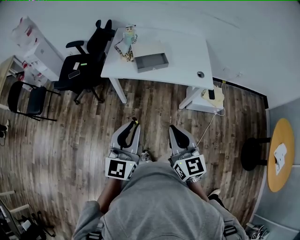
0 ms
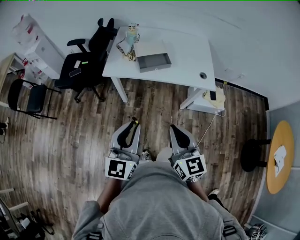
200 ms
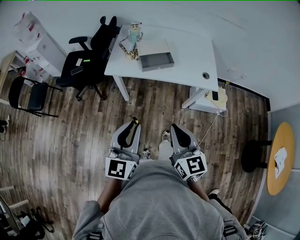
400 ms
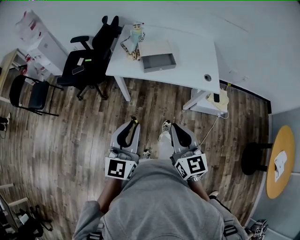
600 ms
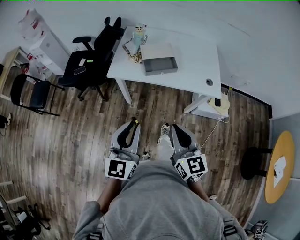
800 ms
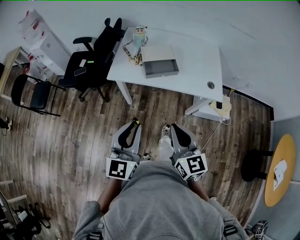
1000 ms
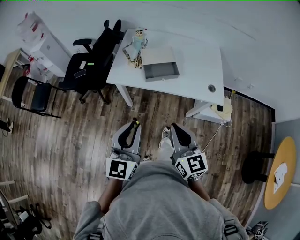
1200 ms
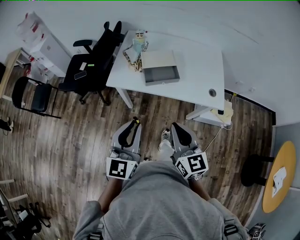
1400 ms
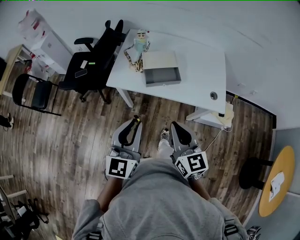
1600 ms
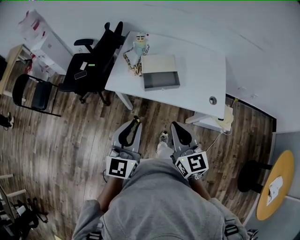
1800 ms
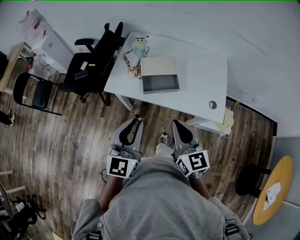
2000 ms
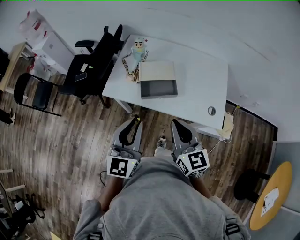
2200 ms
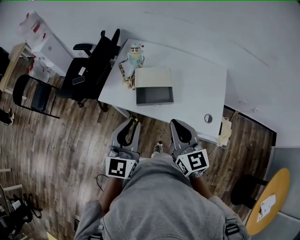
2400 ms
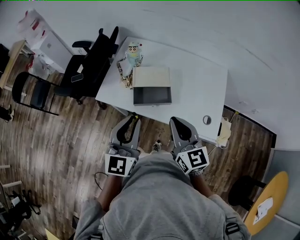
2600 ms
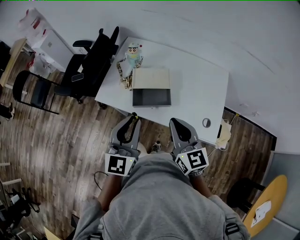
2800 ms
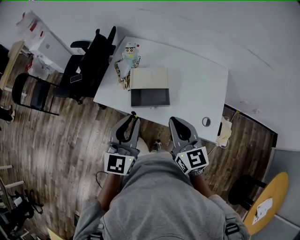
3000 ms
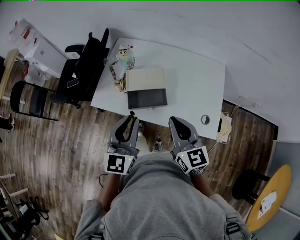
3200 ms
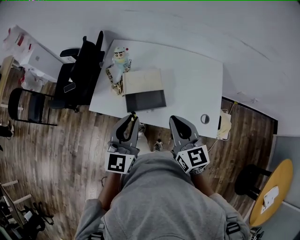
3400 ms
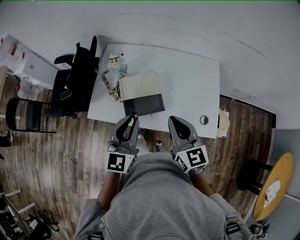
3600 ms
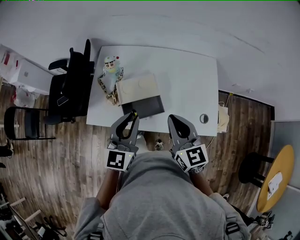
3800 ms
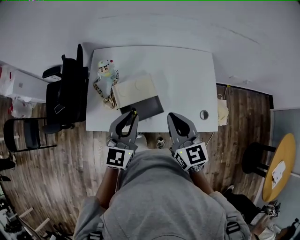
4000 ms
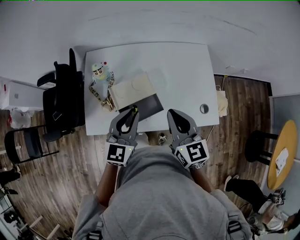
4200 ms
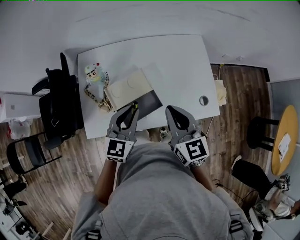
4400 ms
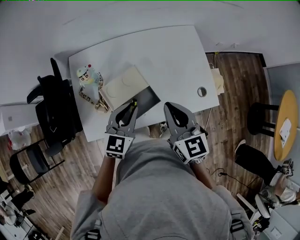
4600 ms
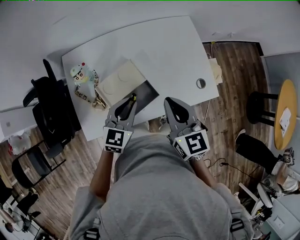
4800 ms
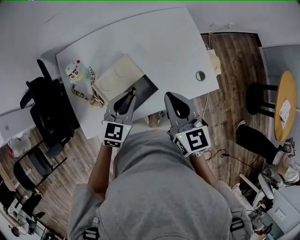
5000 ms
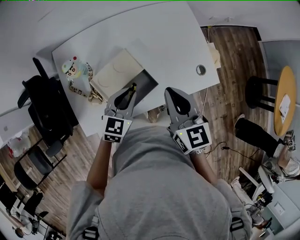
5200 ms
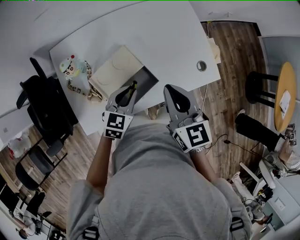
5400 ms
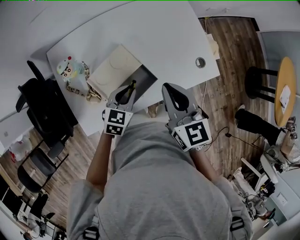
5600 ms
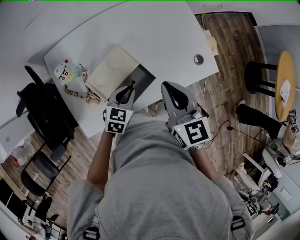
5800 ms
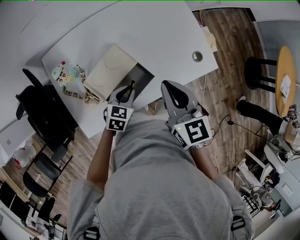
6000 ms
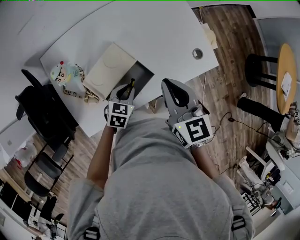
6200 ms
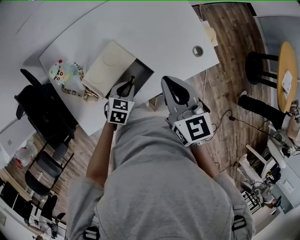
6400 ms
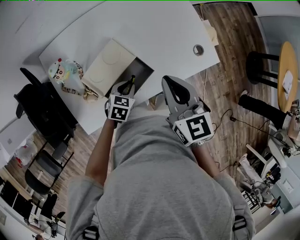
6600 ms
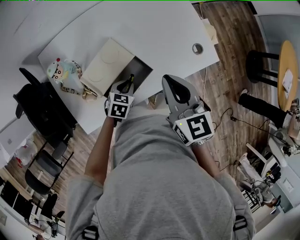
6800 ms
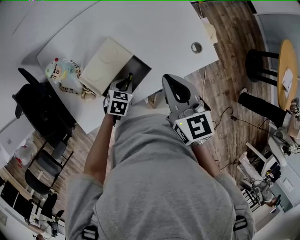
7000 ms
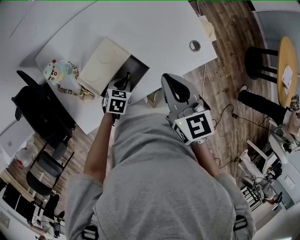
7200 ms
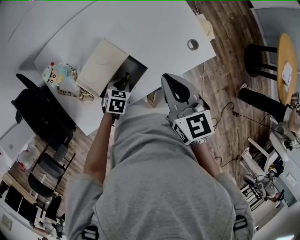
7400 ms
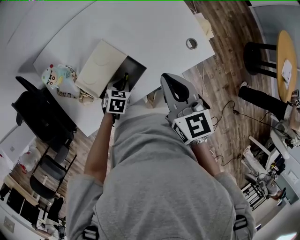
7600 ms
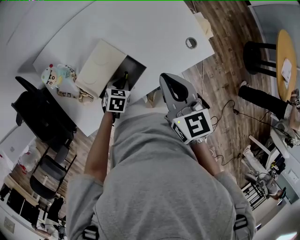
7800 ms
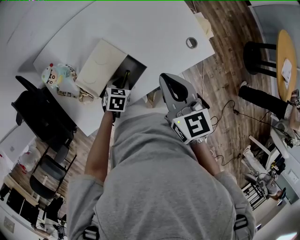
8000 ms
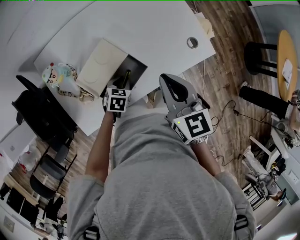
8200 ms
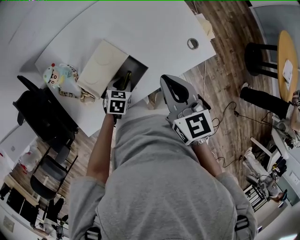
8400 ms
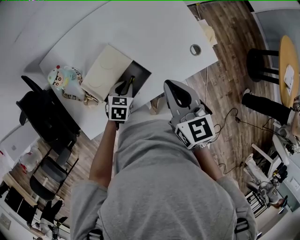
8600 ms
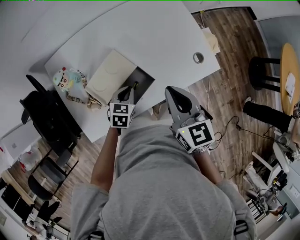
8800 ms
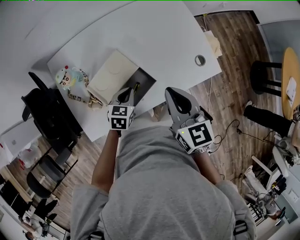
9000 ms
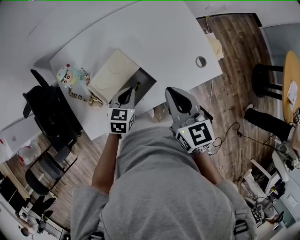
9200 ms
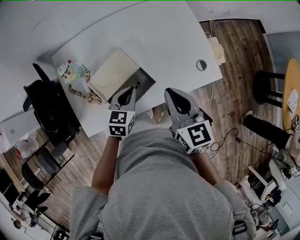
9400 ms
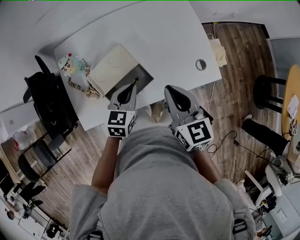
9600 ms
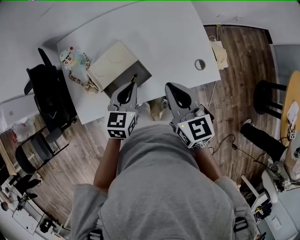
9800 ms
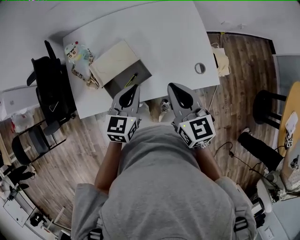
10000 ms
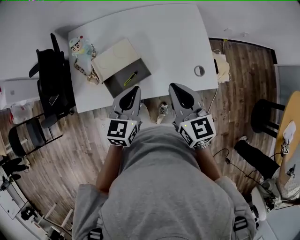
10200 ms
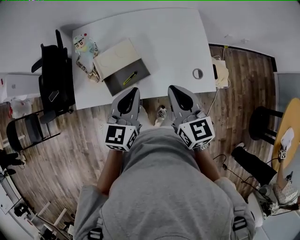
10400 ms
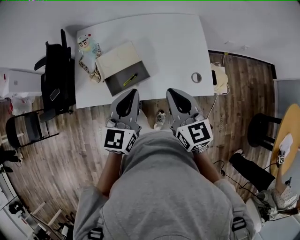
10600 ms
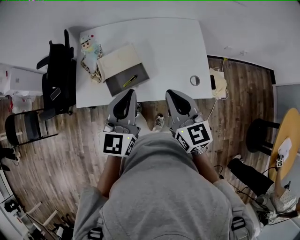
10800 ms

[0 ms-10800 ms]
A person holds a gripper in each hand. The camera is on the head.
0 ms to 1600 ms: Both grippers move forward, some 20 cm.
1600 ms to 3000 ms: Both grippers move forward and to the right, some 20 cm.
3000 ms to 4600 ms: The right gripper shifts by about 15 cm, and rotates roughly 30 degrees. The left gripper ends up about 25 cm from where it was, and swivels about 40 degrees.
4600 ms to 6200 ms: The left gripper travels downward by about 20 cm, and swivels approximately 30 degrees.
6200 ms to 7800 ms: The left gripper heads downward, covering approximately 5 cm.
7800 ms to 9200 ms: The left gripper heads upward, covering about 10 cm, and turns by about 20 degrees.
9200 ms to 10800 ms: The left gripper goes roughly 25 cm upward, and points its fingers roughly 40 degrees further upward. Meanwhile the right gripper shifts by roughly 15 cm, and swivels some 20 degrees.

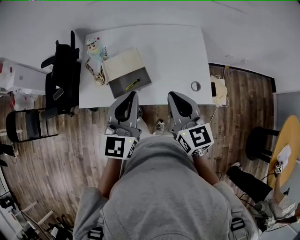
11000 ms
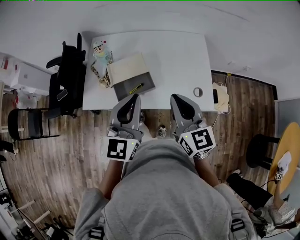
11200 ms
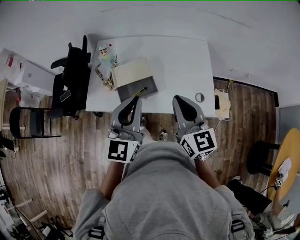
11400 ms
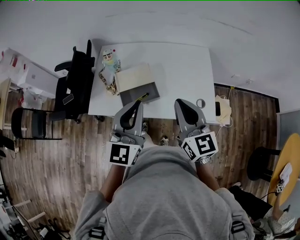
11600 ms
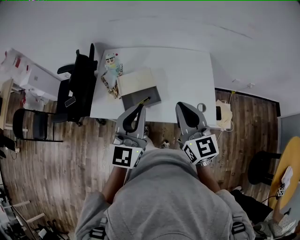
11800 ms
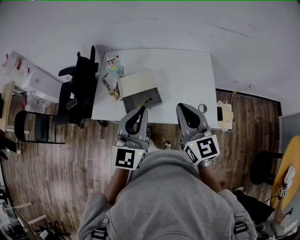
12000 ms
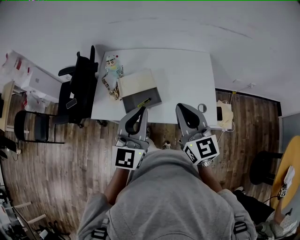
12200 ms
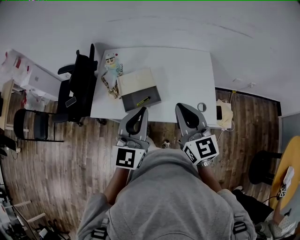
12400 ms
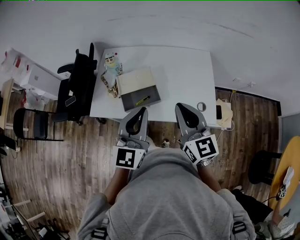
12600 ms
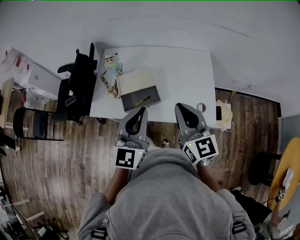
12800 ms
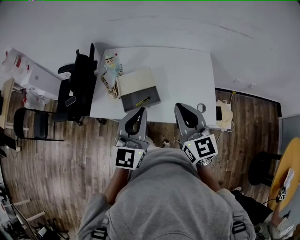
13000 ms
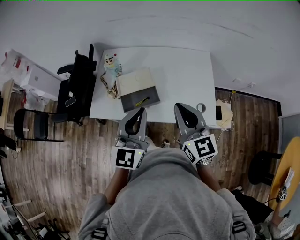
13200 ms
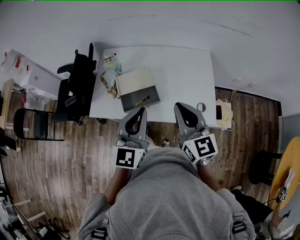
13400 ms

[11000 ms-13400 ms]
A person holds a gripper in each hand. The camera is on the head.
11000 ms to 12200 ms: The right gripper goes some 5 cm upward.
12200 ms to 13400 ms: The grippers make only small movements.

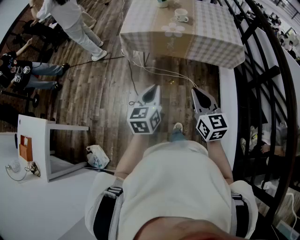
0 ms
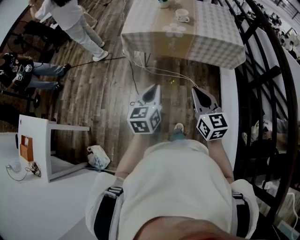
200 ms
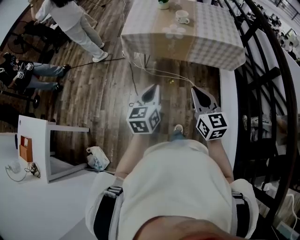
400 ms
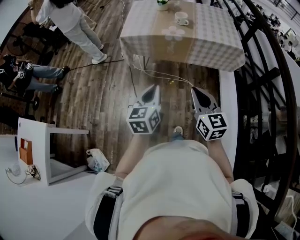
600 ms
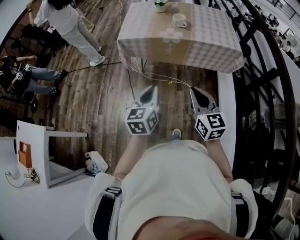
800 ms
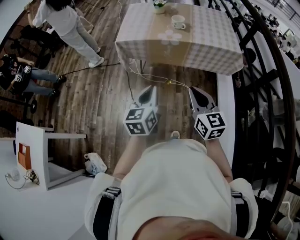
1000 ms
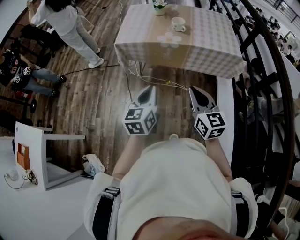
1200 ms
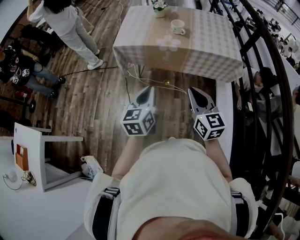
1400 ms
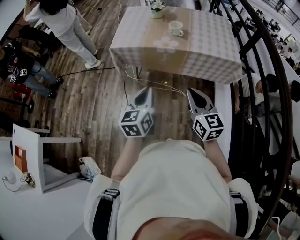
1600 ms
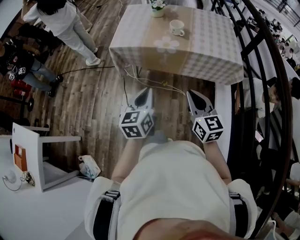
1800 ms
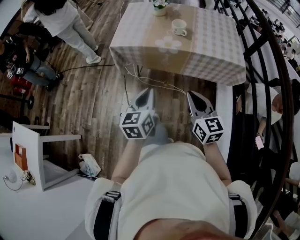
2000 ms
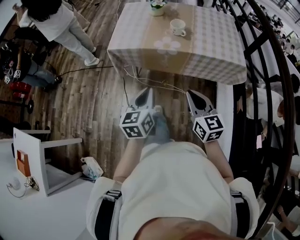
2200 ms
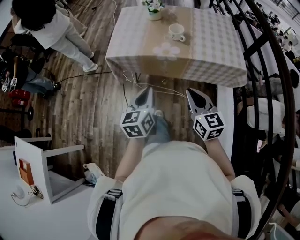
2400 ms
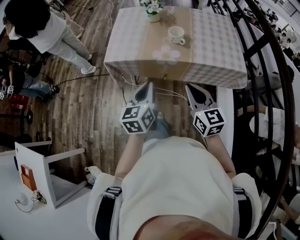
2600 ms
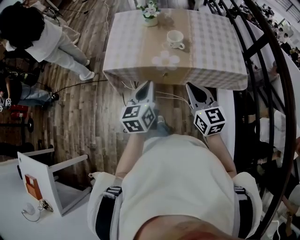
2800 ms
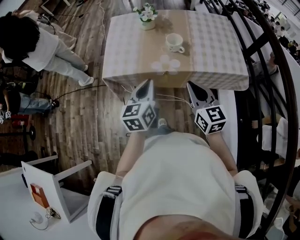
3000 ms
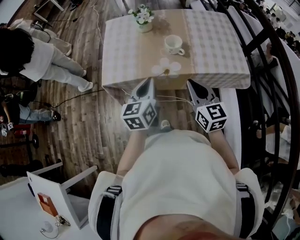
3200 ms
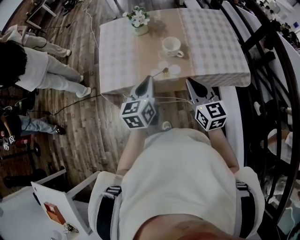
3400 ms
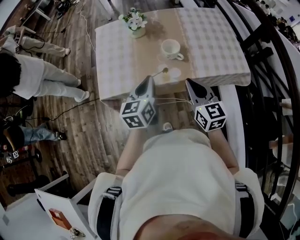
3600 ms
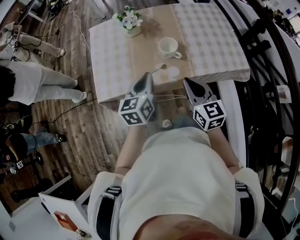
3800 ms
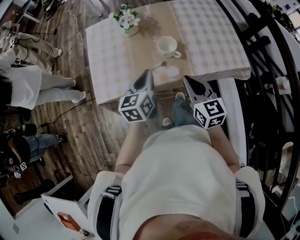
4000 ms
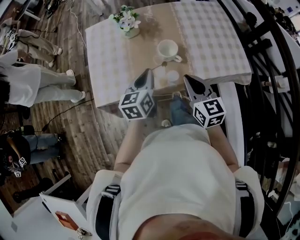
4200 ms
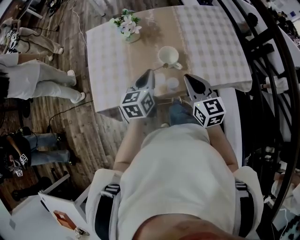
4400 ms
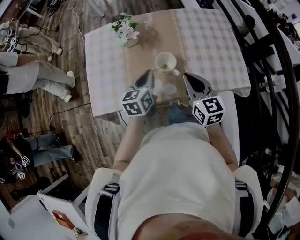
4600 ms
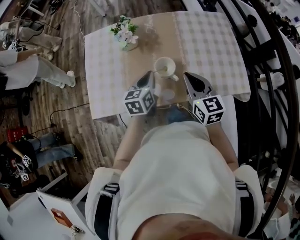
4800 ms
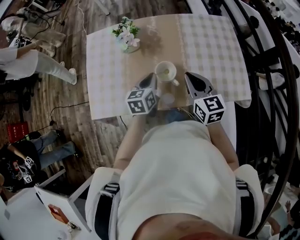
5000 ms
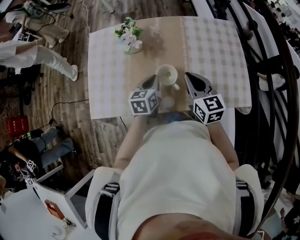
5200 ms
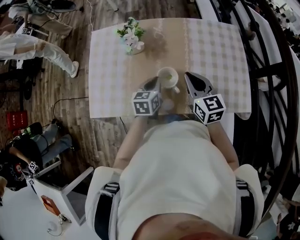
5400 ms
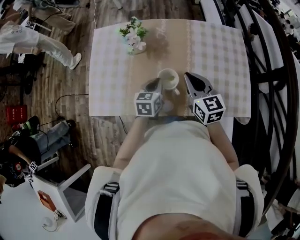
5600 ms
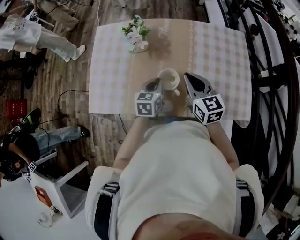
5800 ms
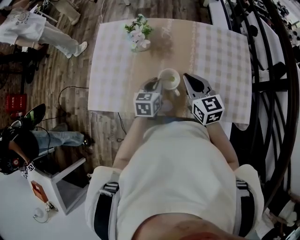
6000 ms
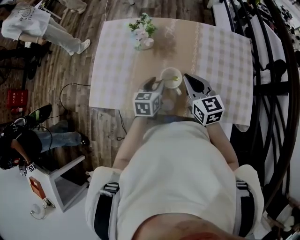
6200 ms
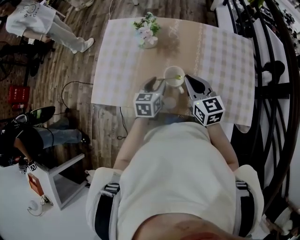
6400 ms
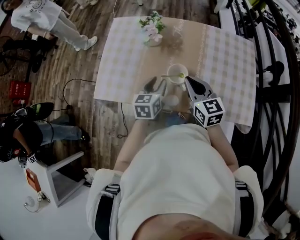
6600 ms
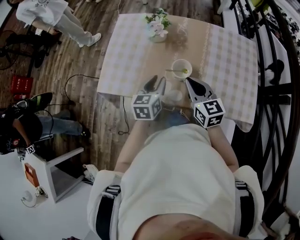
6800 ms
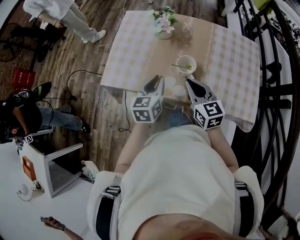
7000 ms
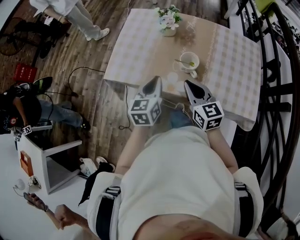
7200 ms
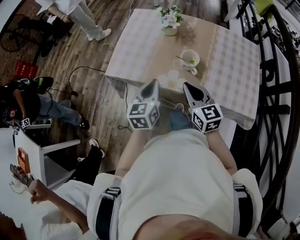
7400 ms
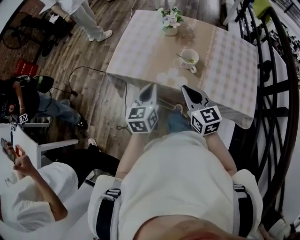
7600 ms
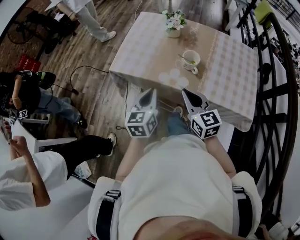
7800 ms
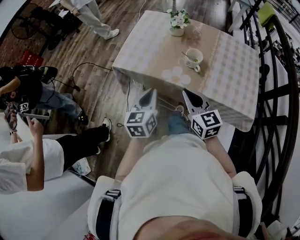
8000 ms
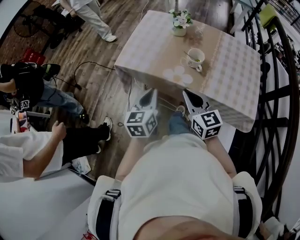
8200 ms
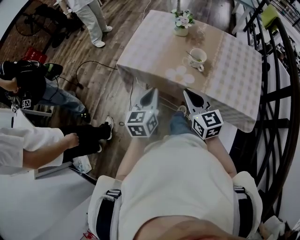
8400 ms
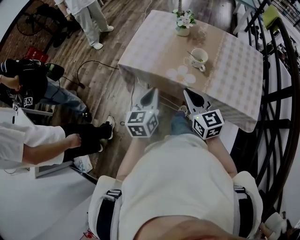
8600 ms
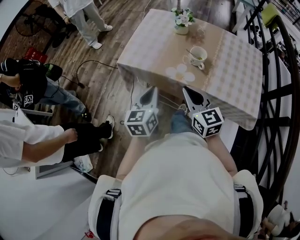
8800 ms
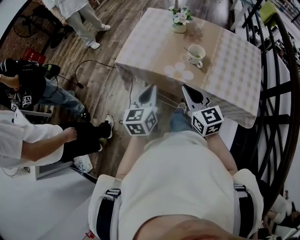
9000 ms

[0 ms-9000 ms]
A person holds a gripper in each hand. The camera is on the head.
0 ms to 1600 ms: Both grippers move forward, roughly 15 cm.
1600 ms to 3000 ms: Both grippers move forward, roughly 25 cm.
3000 ms to 4400 ms: The two grippers go some 20 cm forward.
4400 ms to 6000 ms: The left gripper heads downward and forward, covering roughly 10 cm; the right gripper shifts about 15 cm forward.
6000 ms to 7600 ms: The left gripper is displaced backward, to the left and upward by roughly 25 cm, swivels approximately 30 degrees, and opens, then closes once more. Meanwhile the right gripper goes roughly 20 cm backward and to the left.
7600 ms to 9000 ms: The left gripper heads backward, covering about 5 cm; the right gripper changes place by some 5 cm.

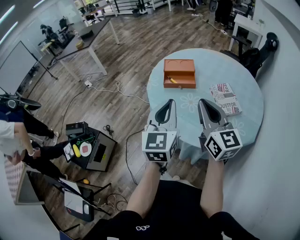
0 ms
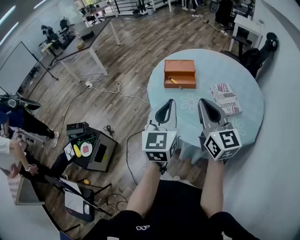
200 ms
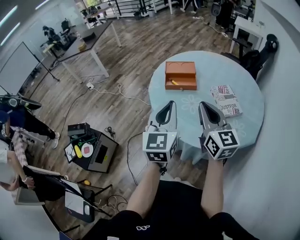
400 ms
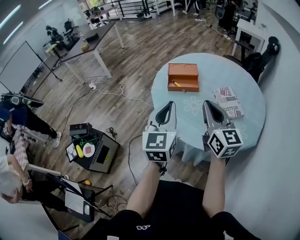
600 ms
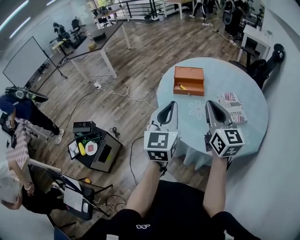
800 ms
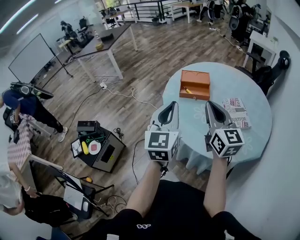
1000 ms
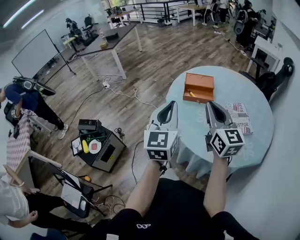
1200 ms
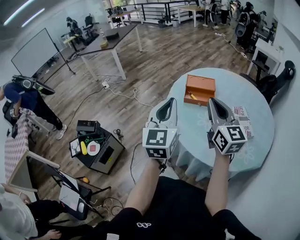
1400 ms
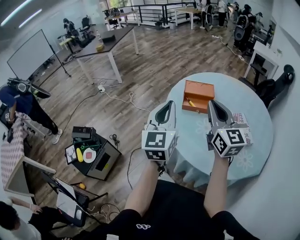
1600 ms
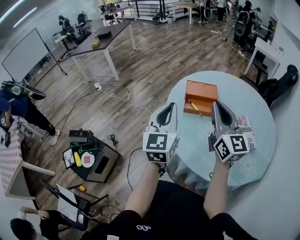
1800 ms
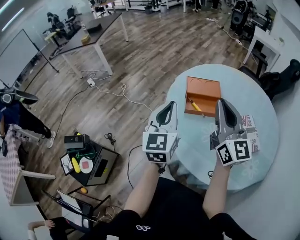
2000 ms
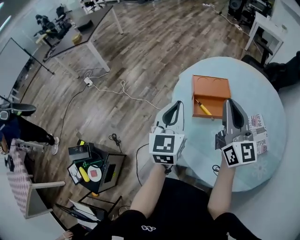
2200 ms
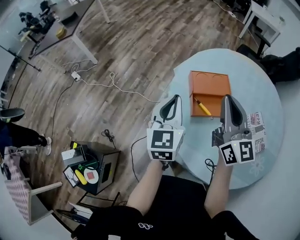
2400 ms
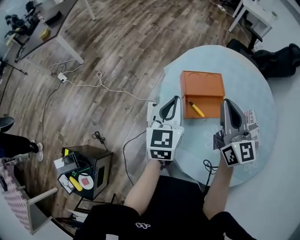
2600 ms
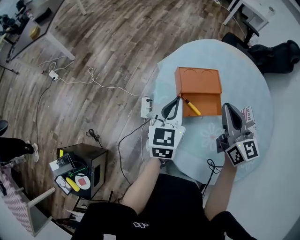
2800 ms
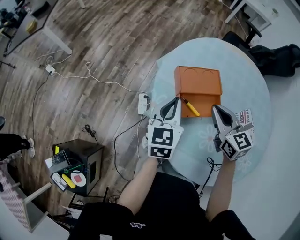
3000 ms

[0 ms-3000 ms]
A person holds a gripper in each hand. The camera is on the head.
0 ms to 1600 ms: The left gripper goes some 15 cm to the left and forward, while the right gripper moves forward and to the left, approximately 15 cm.
1600 ms to 3000 ms: The two grippers go roughly 40 cm forward and downward. The right gripper tilts its fingers approximately 30 degrees downward. The left gripper swivels roughly 30 degrees.
